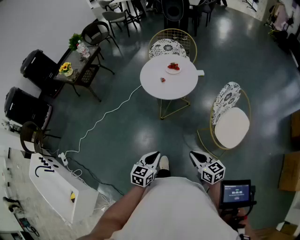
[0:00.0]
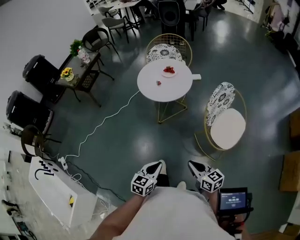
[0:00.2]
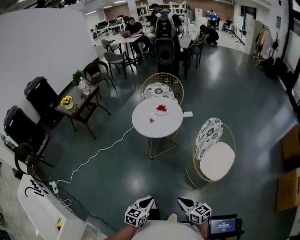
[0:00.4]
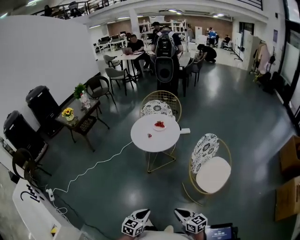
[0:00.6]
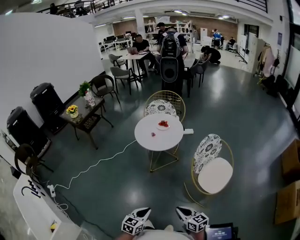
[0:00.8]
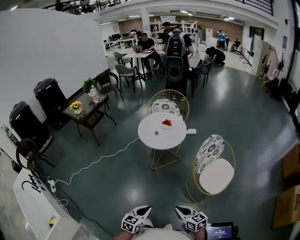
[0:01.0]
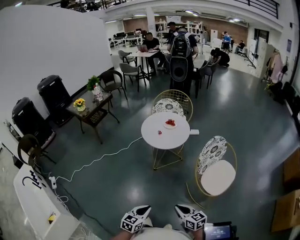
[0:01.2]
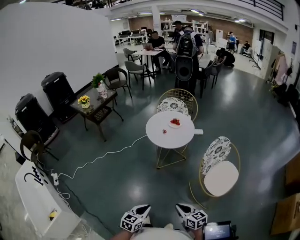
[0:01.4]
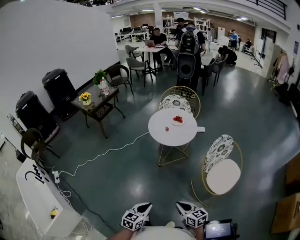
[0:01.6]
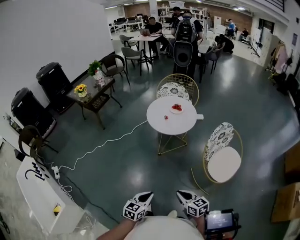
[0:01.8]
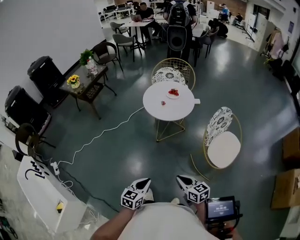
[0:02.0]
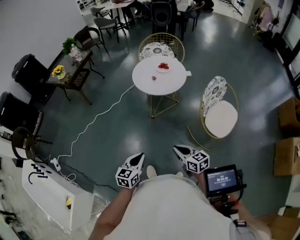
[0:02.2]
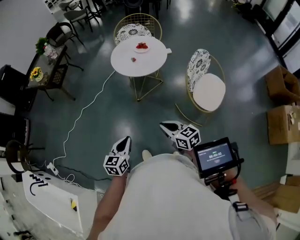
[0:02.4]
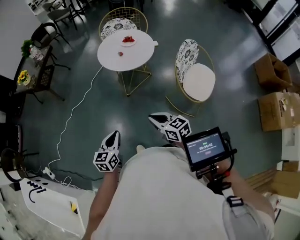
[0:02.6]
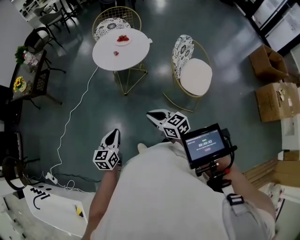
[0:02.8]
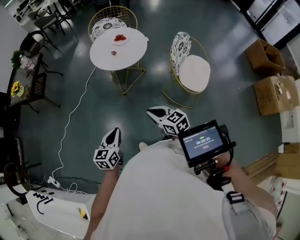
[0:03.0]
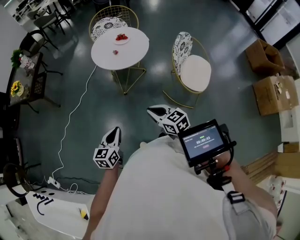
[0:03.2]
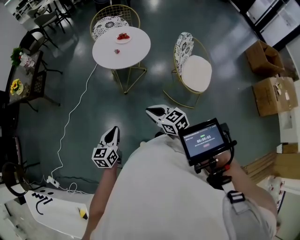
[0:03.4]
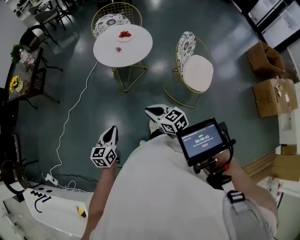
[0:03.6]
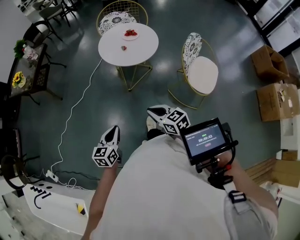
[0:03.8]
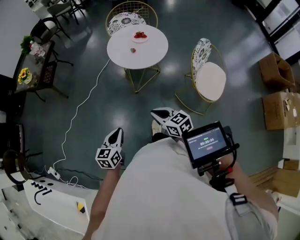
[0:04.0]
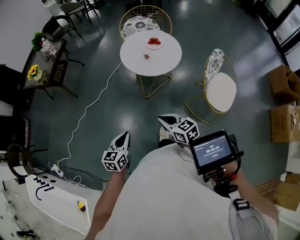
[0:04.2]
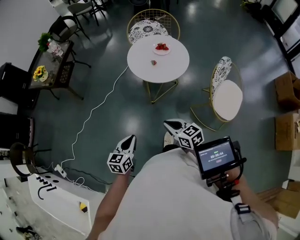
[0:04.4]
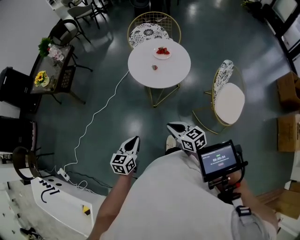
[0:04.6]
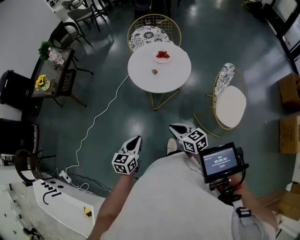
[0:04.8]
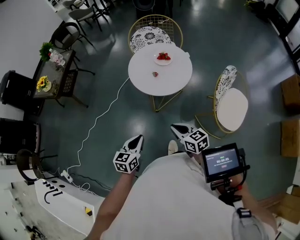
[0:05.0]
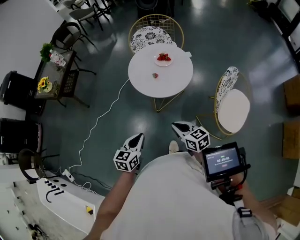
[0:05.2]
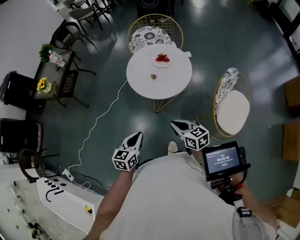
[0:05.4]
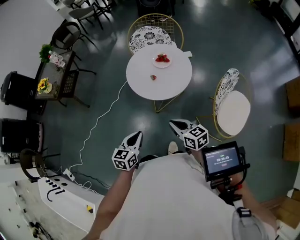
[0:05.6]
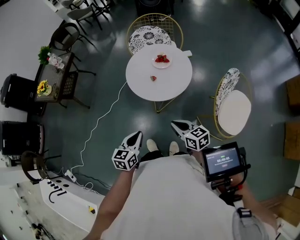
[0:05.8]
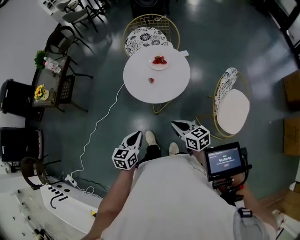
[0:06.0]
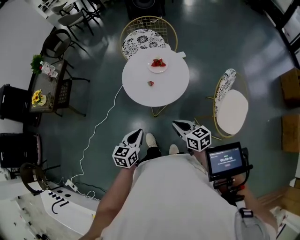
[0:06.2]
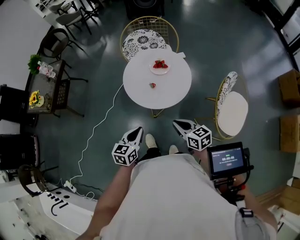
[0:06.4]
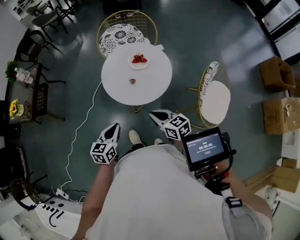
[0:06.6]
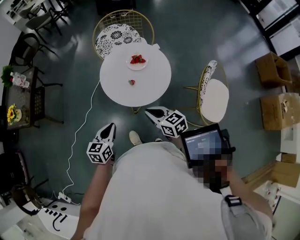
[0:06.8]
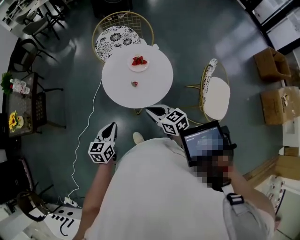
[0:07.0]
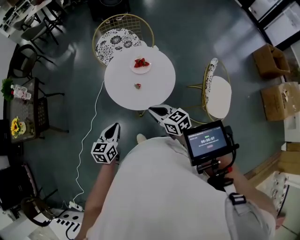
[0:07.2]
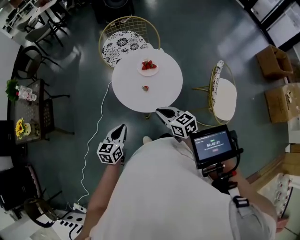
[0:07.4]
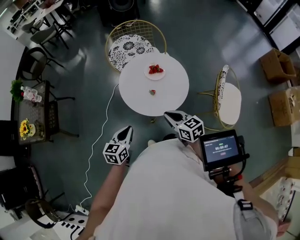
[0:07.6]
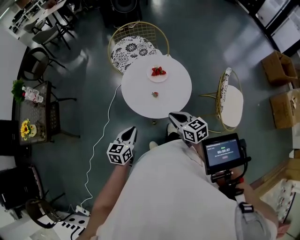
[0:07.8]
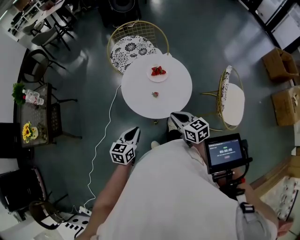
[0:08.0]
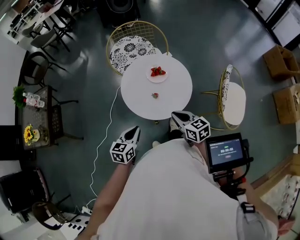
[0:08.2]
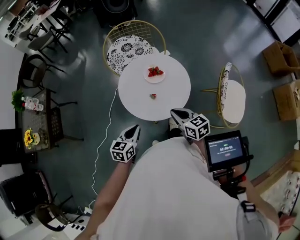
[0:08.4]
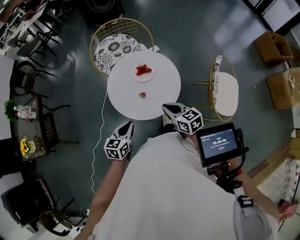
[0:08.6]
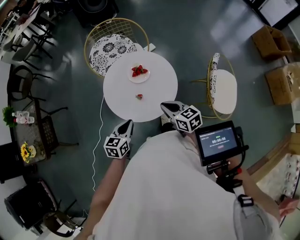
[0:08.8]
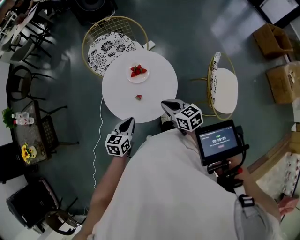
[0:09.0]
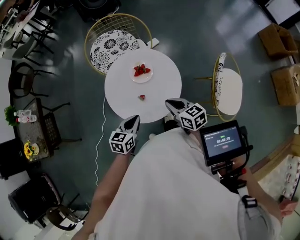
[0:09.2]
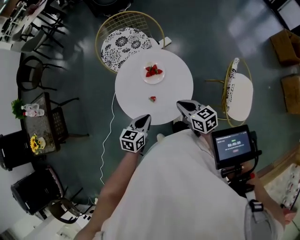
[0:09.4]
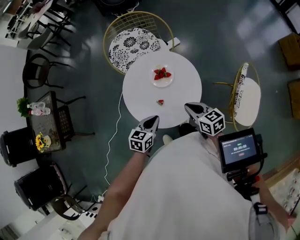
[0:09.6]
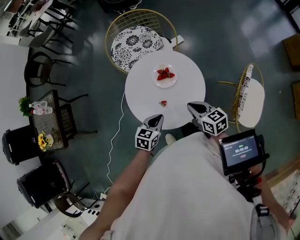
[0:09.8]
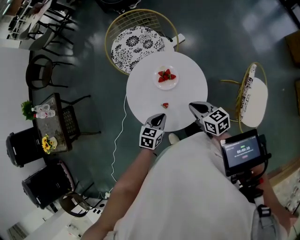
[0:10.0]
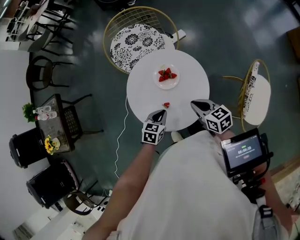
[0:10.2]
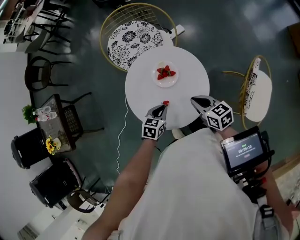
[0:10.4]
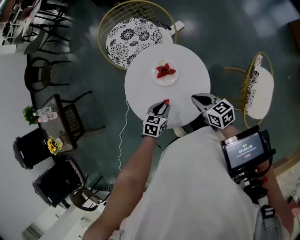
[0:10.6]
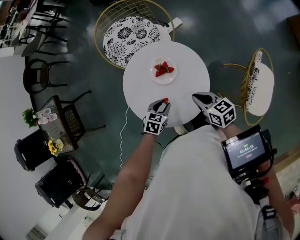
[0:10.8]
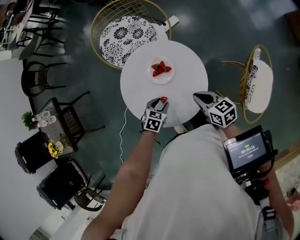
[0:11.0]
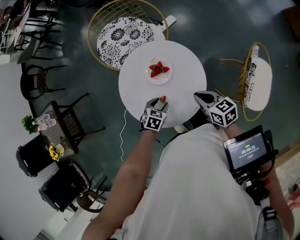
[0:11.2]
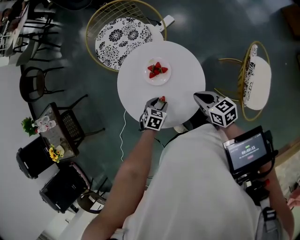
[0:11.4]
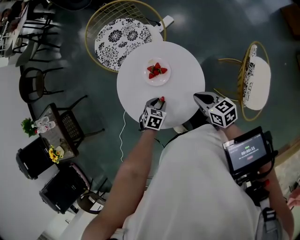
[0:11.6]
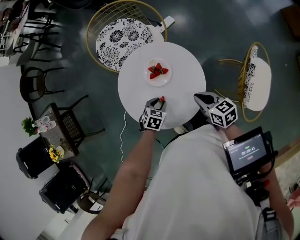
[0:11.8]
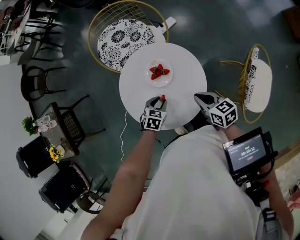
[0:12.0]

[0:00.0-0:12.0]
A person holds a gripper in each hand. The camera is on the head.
0:00.0 to 0:01.6: Both grippers travel together backward, approximately 15 cm.
0:01.6 to 0:03.0: Both grippers travel together to the left and forward, roughly 20 cm.
0:03.0 to 0:04.4: Both grippers move forward and to the left, some 10 cm.
0:04.4 to 0:06.0: The grippers both shift forward and to the right by about 20 cm.
0:06.0 to 0:07.6: The grippers both shift forward and to the left by about 20 cm.
0:07.6 to 0:09.0: The left gripper travels to the right and forward by about 15 cm; the right gripper is displaced forward and to the right by roughly 10 cm.
0:09.0 to 0:10.4: The left gripper travels forward and downward by about 15 cm. The right gripper moves forward, about 10 cm.
0:10.4 to 0:12.0: The right gripper changes place by approximately 5 cm. The left gripper goes about 5 cm downward, and opens.

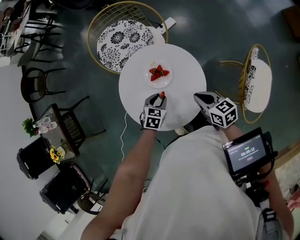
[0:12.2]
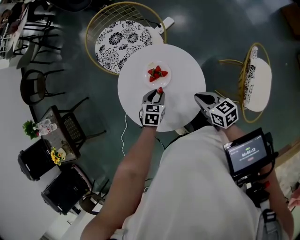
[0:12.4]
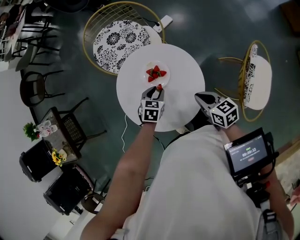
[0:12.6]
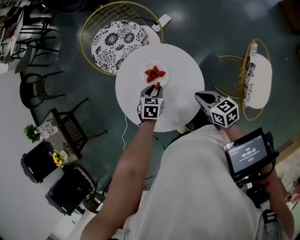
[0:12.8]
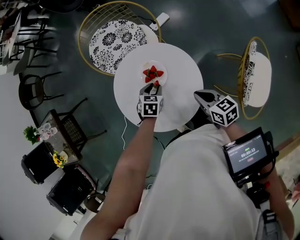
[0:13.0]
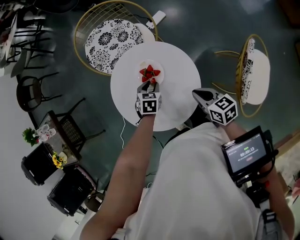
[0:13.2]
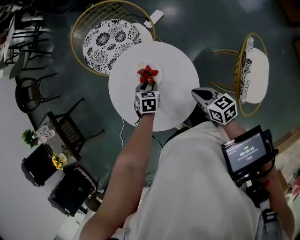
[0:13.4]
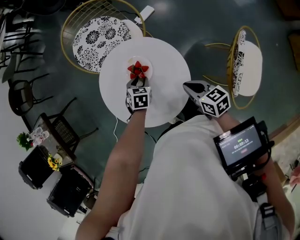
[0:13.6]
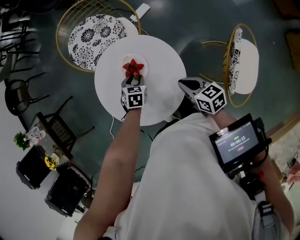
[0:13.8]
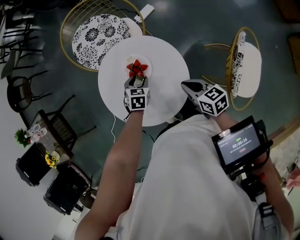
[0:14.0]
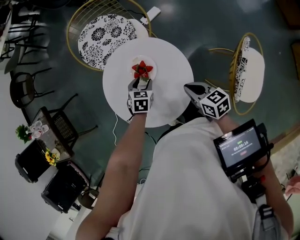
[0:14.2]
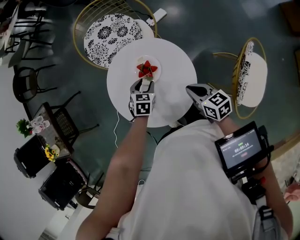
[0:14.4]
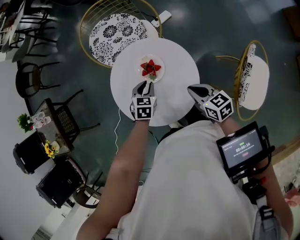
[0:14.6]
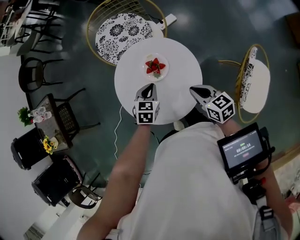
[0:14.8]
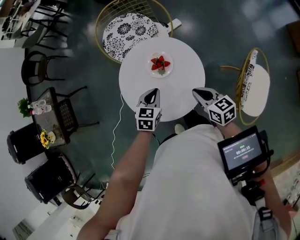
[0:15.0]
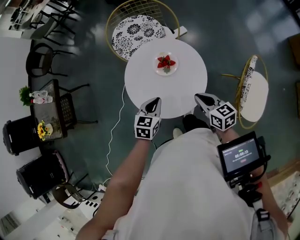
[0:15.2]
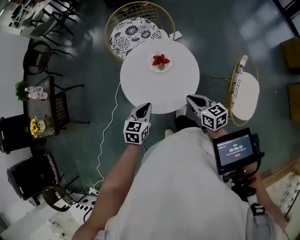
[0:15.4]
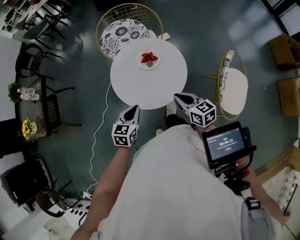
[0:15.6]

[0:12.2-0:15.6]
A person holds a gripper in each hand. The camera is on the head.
0:12.2 to 0:13.8: The left gripper moves forward, approximately 5 cm.
0:13.8 to 0:15.6: The left gripper heads backward, upward and to the left, covering about 25 cm, turns by about 30 degrees, and closes, while the right gripper shifts some 10 cm to the left, backward and upward.

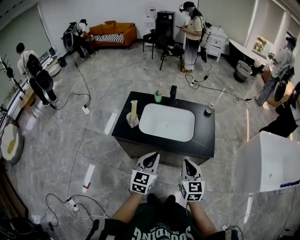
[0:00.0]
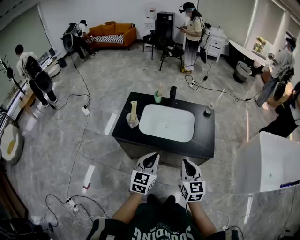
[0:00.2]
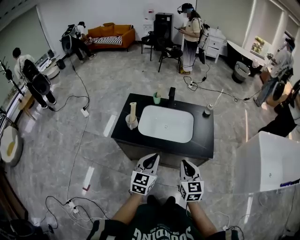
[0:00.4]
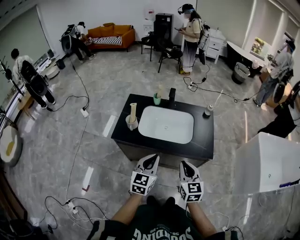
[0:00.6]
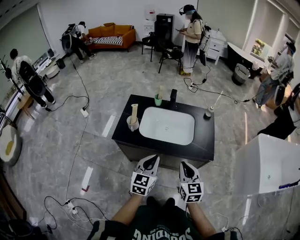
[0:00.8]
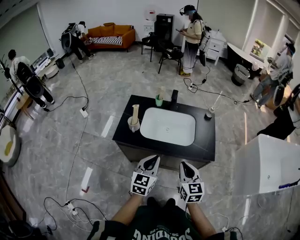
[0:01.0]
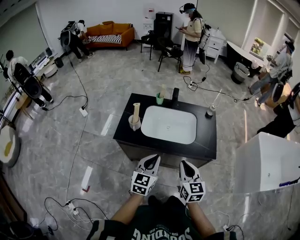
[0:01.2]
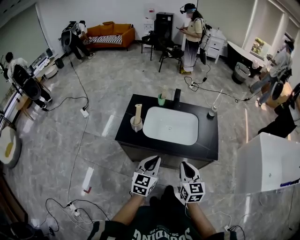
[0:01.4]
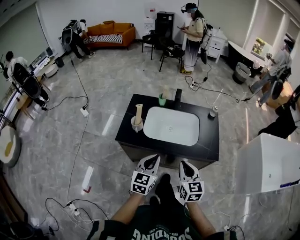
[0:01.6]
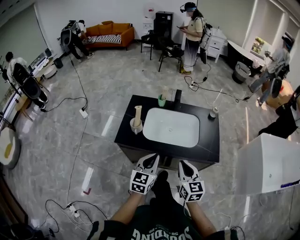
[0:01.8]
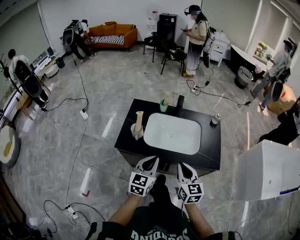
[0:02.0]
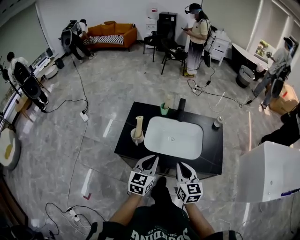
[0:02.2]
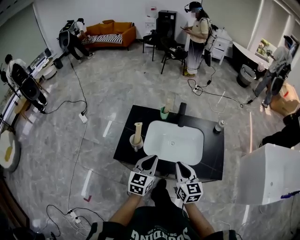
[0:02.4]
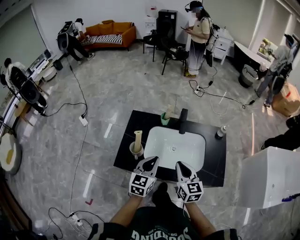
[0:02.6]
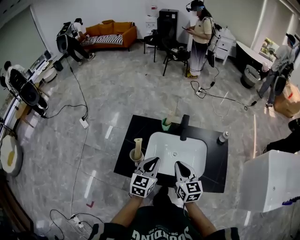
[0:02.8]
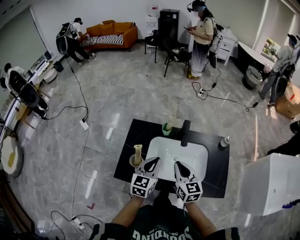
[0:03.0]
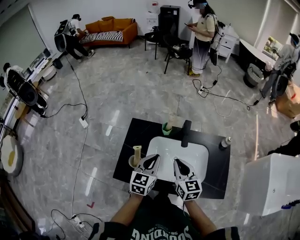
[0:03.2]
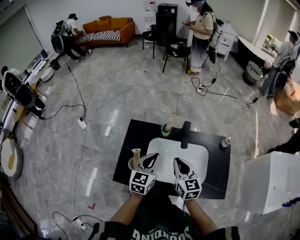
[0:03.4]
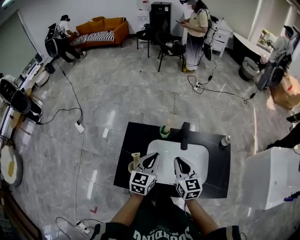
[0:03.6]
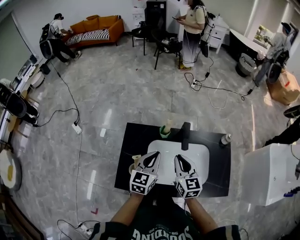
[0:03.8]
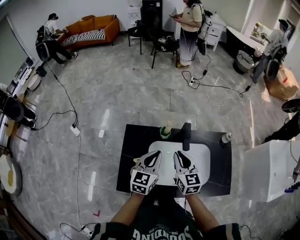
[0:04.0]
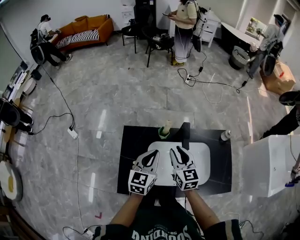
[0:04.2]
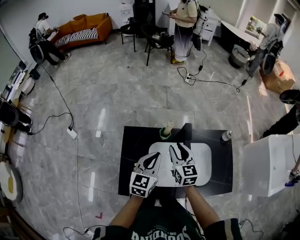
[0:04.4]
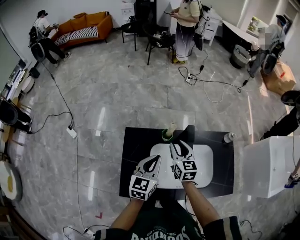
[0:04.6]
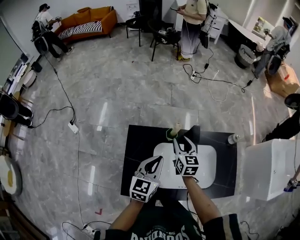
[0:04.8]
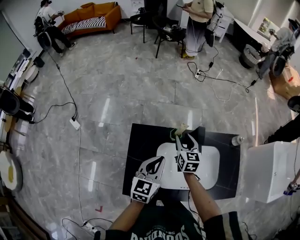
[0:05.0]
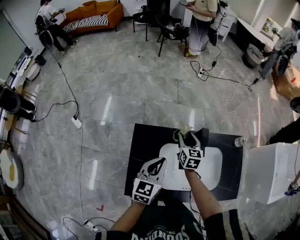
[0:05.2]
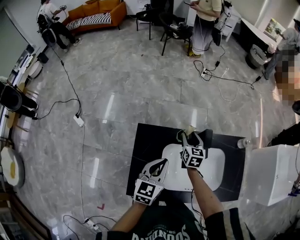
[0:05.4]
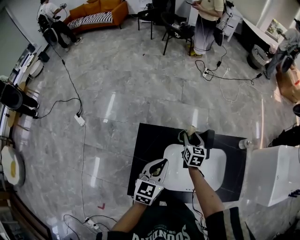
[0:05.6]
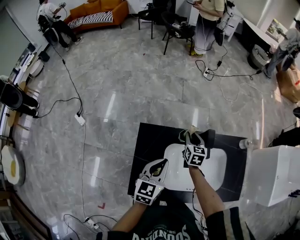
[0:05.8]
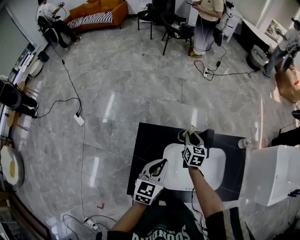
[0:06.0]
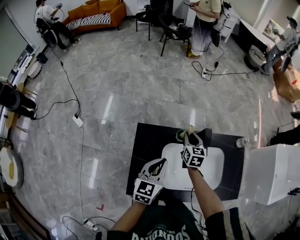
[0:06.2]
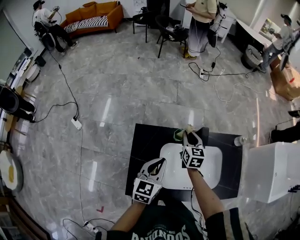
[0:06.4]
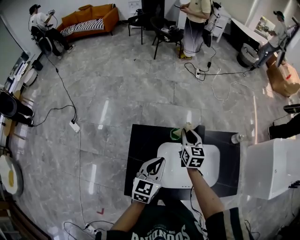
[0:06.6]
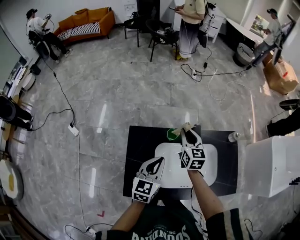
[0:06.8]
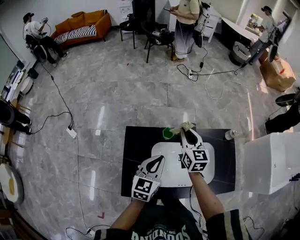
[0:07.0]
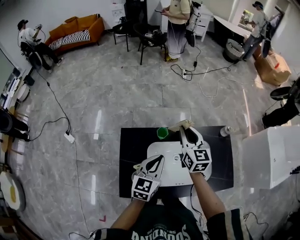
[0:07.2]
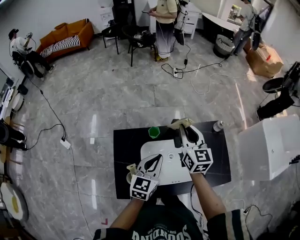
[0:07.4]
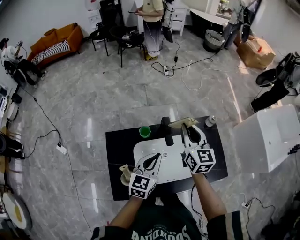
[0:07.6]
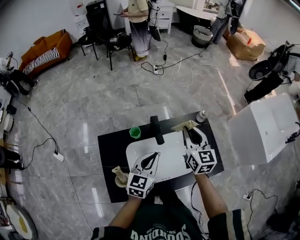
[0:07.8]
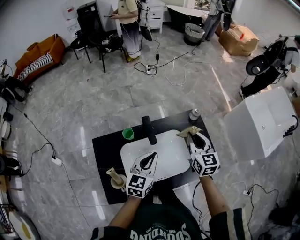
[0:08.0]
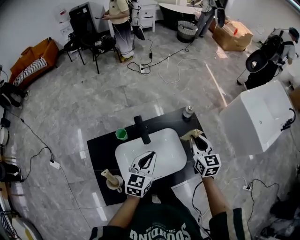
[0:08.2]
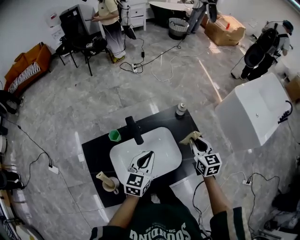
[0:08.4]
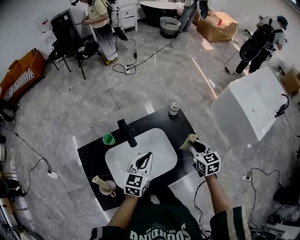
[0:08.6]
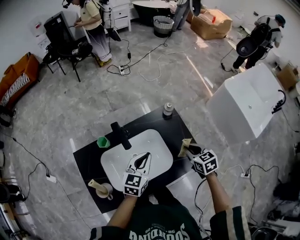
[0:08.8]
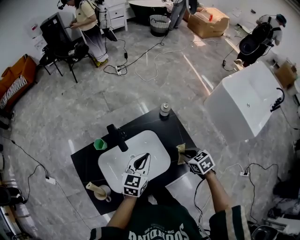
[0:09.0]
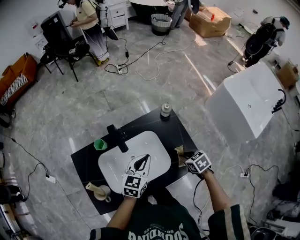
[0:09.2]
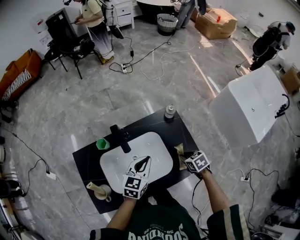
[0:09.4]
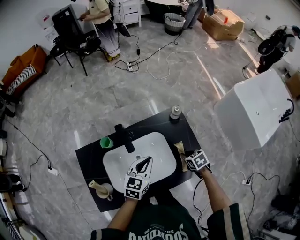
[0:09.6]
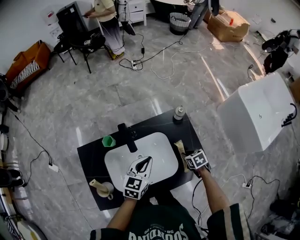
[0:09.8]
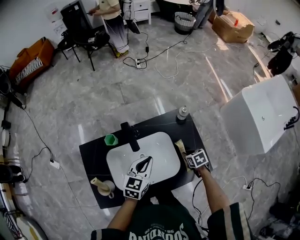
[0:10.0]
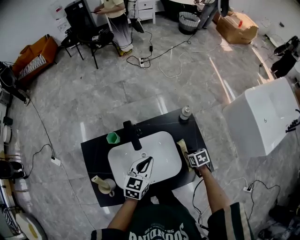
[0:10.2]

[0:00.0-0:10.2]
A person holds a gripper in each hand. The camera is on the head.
0:00.0 to 0:01.4: The right gripper is displaced to the left by about 5 cm.
0:01.4 to 0:03.0: The two grippers go approximately 30 cm forward.
0:03.0 to 0:04.4: Both grippers travel together forward, roughly 15 cm. The right gripper opens.
0:04.4 to 0:05.8: The right gripper moves downward and forward, some 15 cm. The left gripper shifts roughly 5 cm to the left.
0:05.8 to 0:07.2: The left gripper shifts approximately 10 cm to the right, while the right gripper goes some 20 cm upward, and swivels about 20 degrees.
0:07.2 to 0:08.8: The left gripper is displaced to the right by roughly 25 cm, and turns by about 20 degrees. Meanwhile the right gripper is displaced to the right by about 40 cm, and tilts its fingers some 30 degrees downward.
0:08.8 to 0:10.2: The right gripper moves downward, some 15 cm, and turns by approximately 20 degrees.
